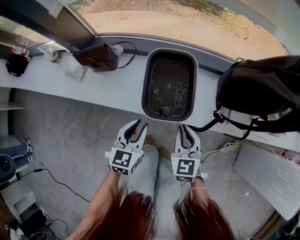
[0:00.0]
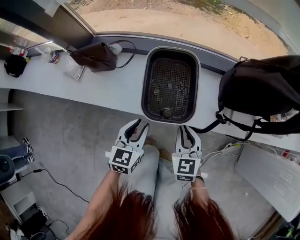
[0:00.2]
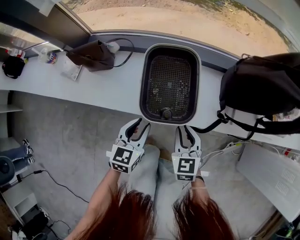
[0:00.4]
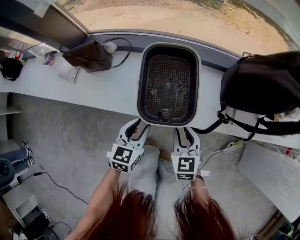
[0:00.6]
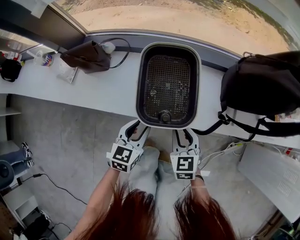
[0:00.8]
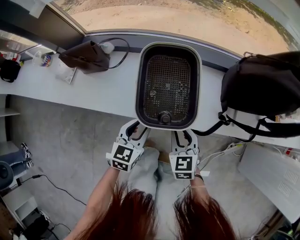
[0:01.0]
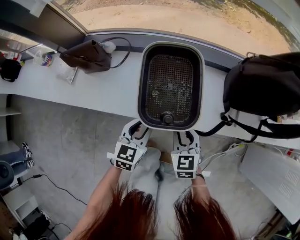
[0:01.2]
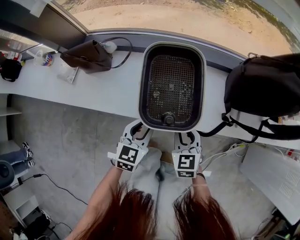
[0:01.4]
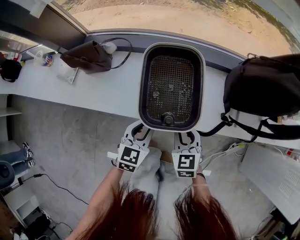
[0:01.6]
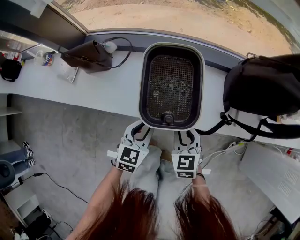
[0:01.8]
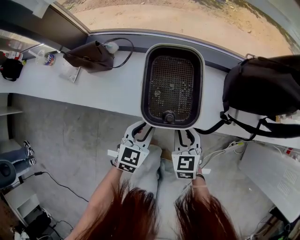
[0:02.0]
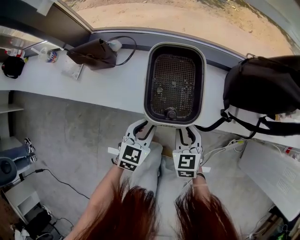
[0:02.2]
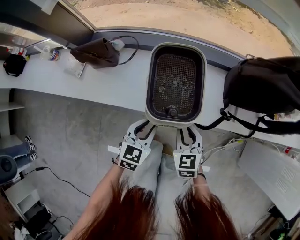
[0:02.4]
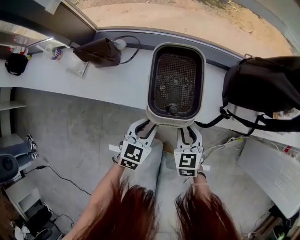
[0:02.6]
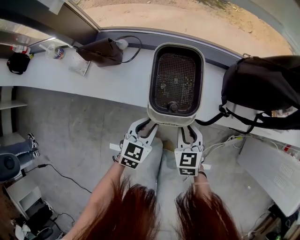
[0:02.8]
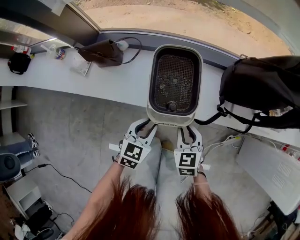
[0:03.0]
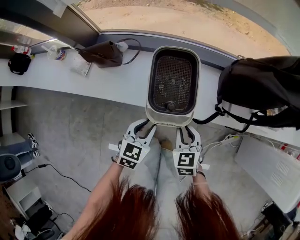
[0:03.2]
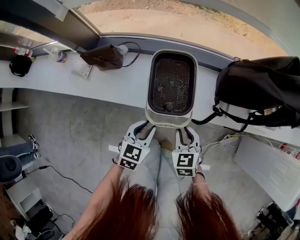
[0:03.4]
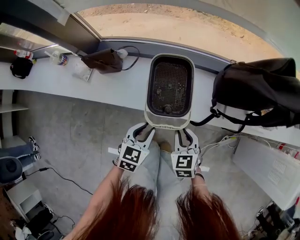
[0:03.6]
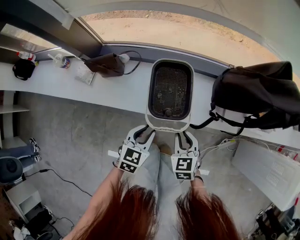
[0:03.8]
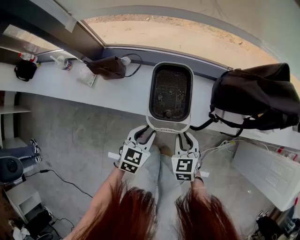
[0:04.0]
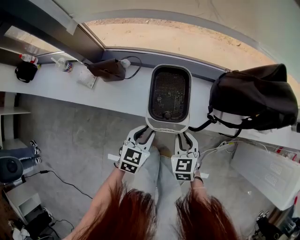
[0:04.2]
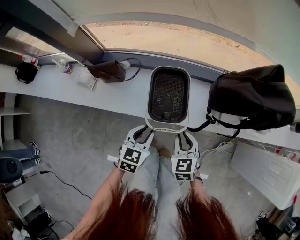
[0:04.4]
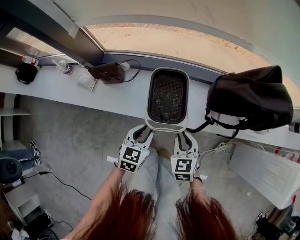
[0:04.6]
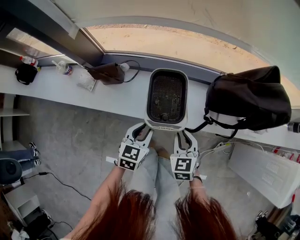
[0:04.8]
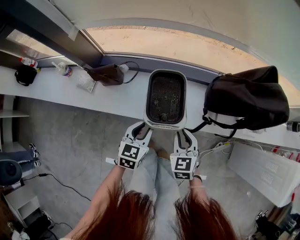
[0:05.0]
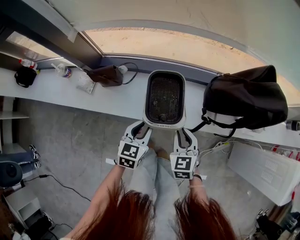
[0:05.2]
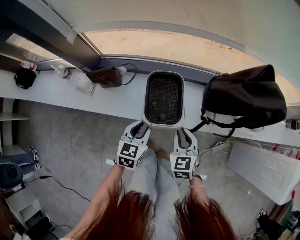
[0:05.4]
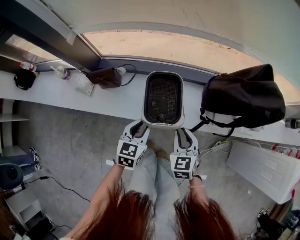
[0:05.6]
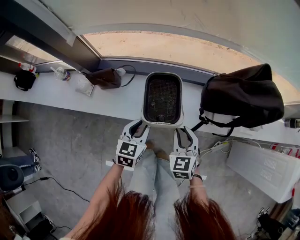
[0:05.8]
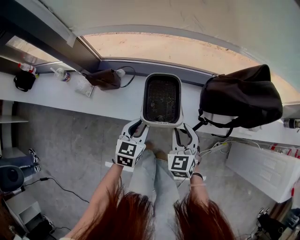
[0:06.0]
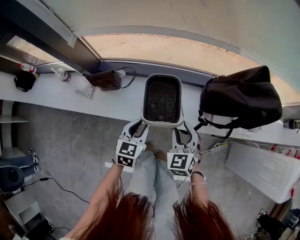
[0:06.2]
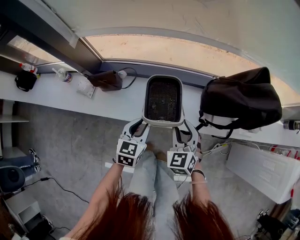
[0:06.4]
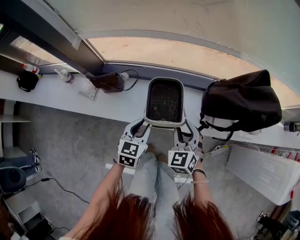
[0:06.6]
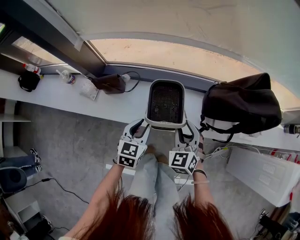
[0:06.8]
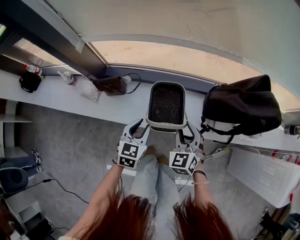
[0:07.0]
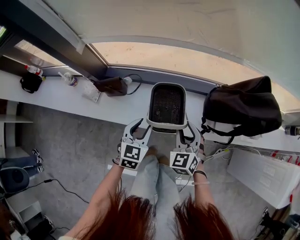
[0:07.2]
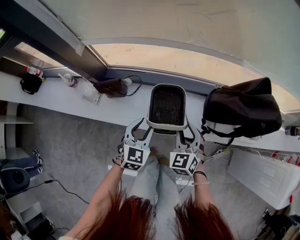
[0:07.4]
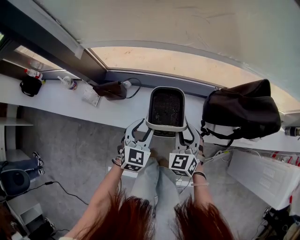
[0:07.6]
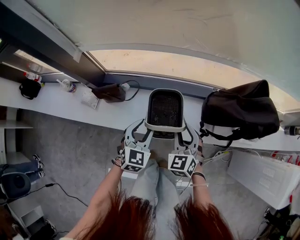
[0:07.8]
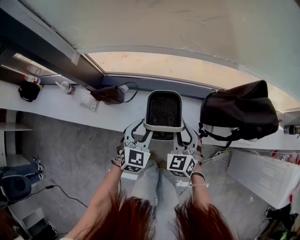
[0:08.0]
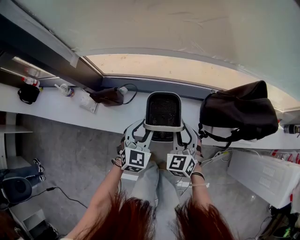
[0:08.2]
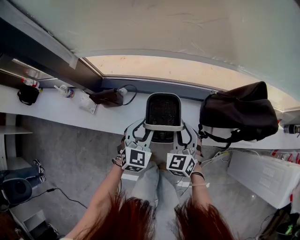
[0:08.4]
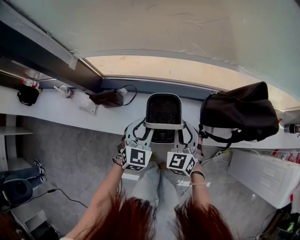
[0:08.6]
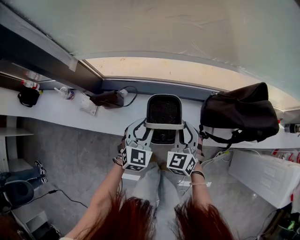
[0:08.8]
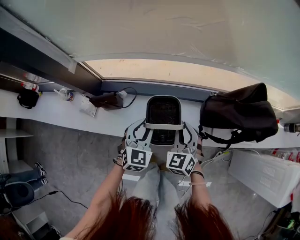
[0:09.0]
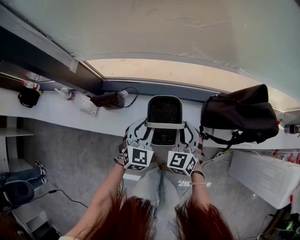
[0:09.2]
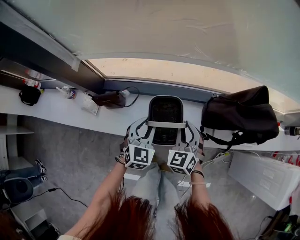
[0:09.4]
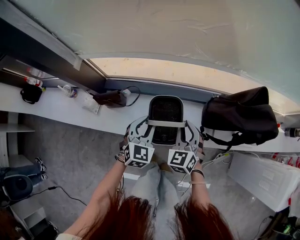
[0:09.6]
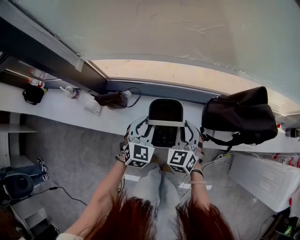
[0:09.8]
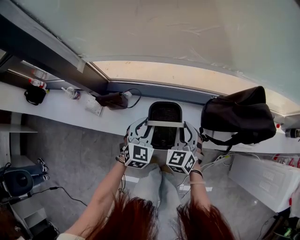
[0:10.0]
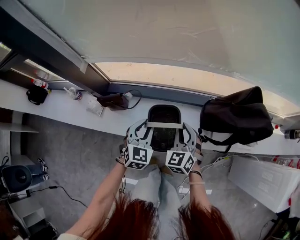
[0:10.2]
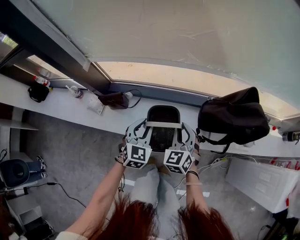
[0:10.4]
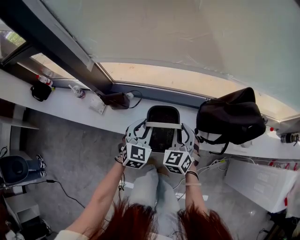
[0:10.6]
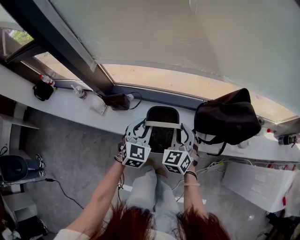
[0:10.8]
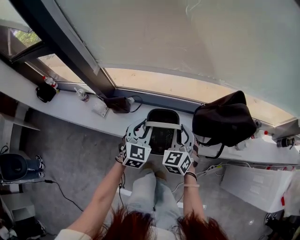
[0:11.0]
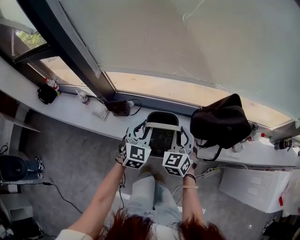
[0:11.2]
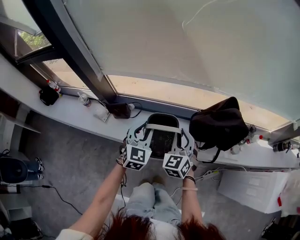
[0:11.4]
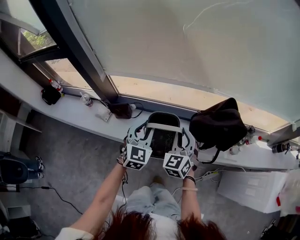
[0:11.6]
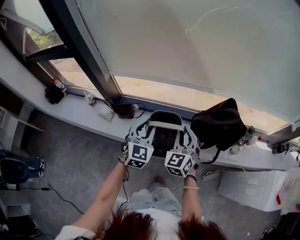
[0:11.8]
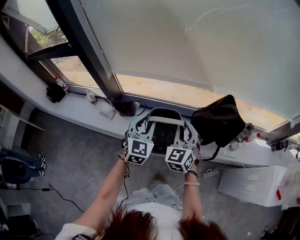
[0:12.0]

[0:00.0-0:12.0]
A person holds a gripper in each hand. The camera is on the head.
0:00.0 to 0:01.6: Both grippers move downward, roughly 10 cm.
0:01.6 to 0:03.0: The two grippers go some 10 cm upward.
0:03.0 to 0:04.4: Both grippers move upward, some 10 cm.
0:04.4 to 0:06.0: The right gripper is displaced upward by about 5 cm. Meanwhile the left gripper shifts by some 5 cm.
0:06.0 to 0:07.6: The right gripper moves forward, about 5 cm, while the left gripper shifts by roughly 5 cm, and changes its angle by some 20 degrees.
0:07.6 to 0:09.0: The left gripper travels forward by approximately 5 cm.
0:09.0 to 0:10.4: The grippers move only a little.
0:10.4 to 0:12.0: The grippers both shift upward by approximately 20 cm.

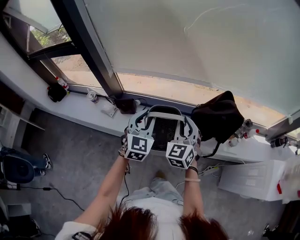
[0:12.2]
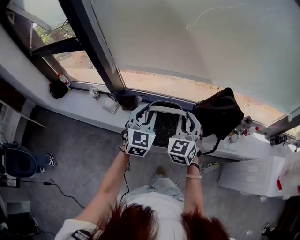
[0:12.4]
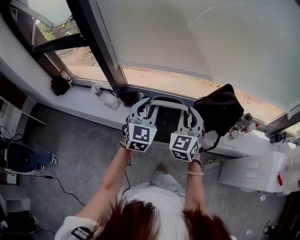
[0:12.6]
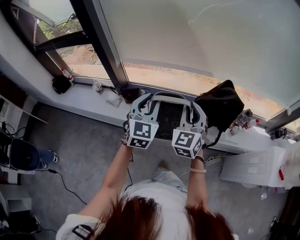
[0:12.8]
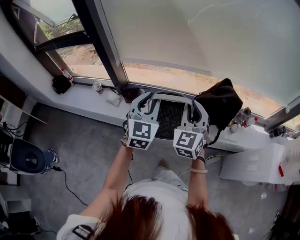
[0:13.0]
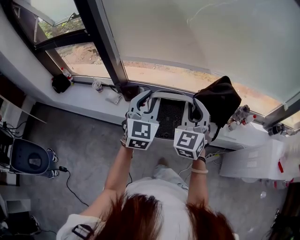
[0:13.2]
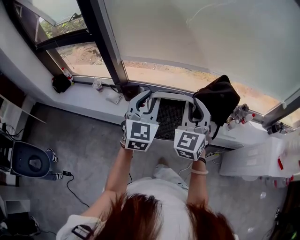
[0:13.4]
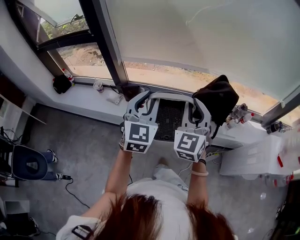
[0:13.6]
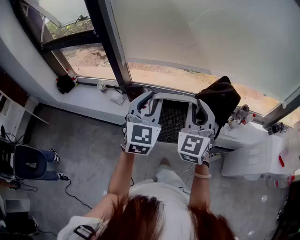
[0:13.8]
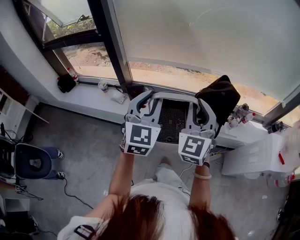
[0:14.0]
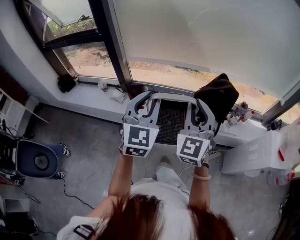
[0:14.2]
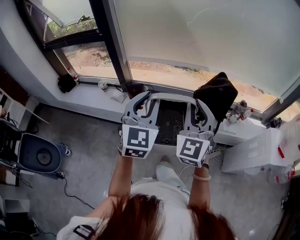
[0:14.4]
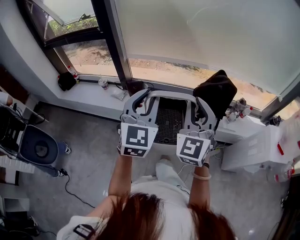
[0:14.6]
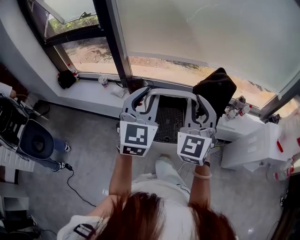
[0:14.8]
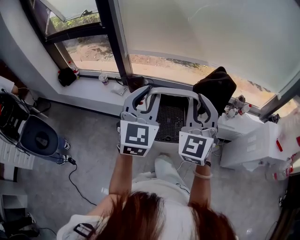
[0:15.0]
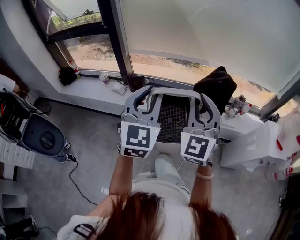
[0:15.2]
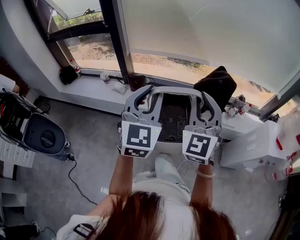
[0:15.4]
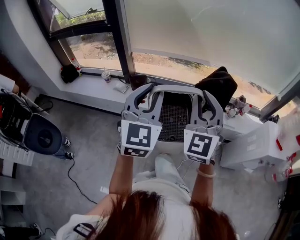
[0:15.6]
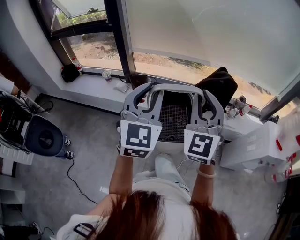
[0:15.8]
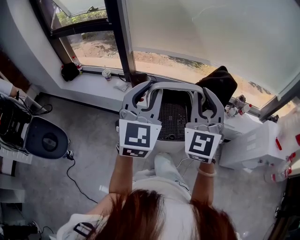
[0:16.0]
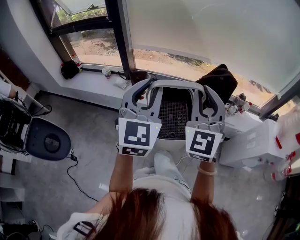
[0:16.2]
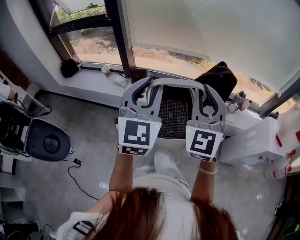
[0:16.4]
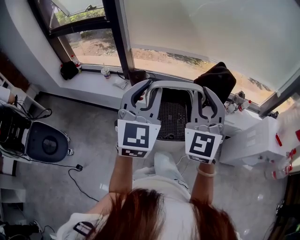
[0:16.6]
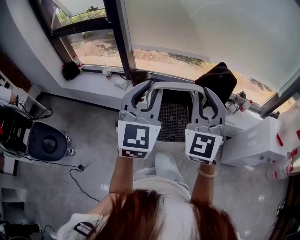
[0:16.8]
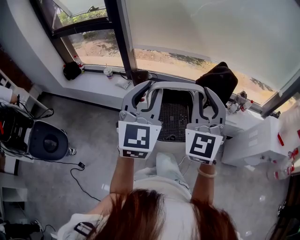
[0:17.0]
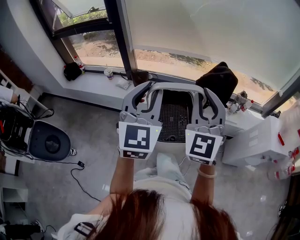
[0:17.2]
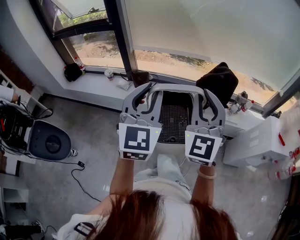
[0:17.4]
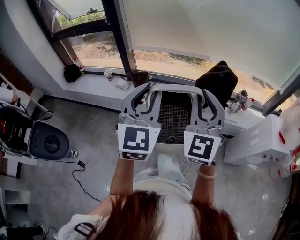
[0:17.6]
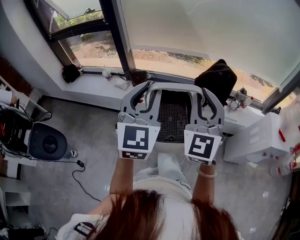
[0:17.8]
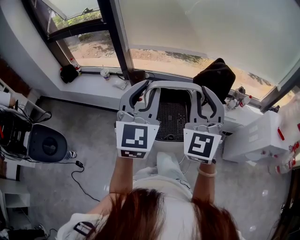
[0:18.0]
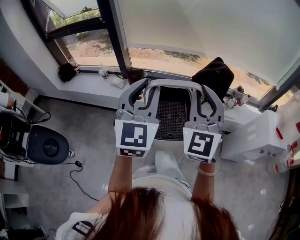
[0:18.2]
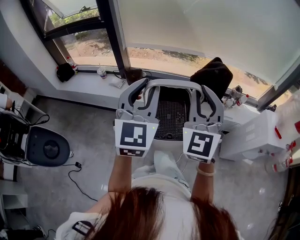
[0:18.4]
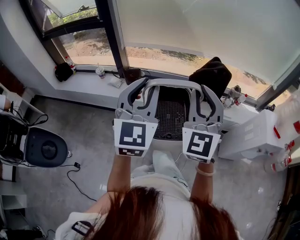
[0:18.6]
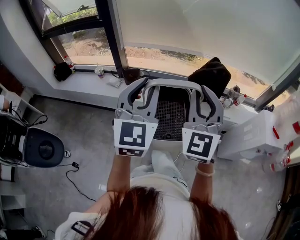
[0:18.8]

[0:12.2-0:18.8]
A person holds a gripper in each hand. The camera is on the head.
0:12.2 to 0:13.8: The grippers both shift backward and upward by roughly 25 cm.
0:13.8 to 0:15.4: Both grippers move backward, approximately 15 cm.
0:15.4 to 0:17.2: The right gripper moves roughly 5 cm; the left gripper is displaced backward by approximately 5 cm.
0:17.2 to 0:18.8: Both grippers stay put.

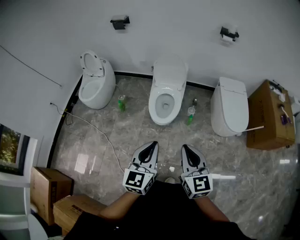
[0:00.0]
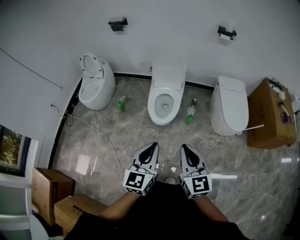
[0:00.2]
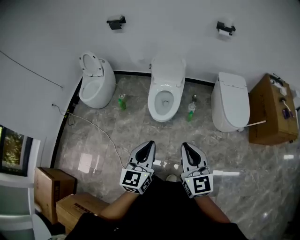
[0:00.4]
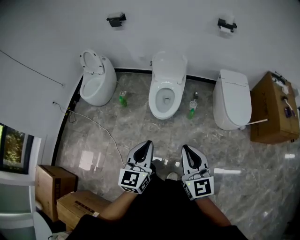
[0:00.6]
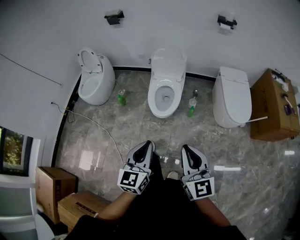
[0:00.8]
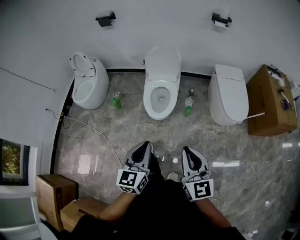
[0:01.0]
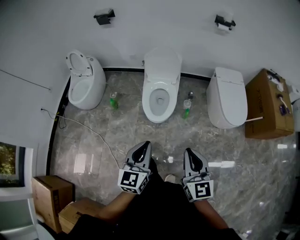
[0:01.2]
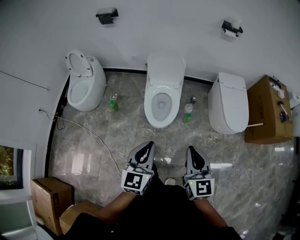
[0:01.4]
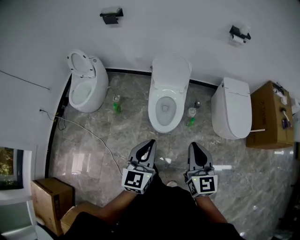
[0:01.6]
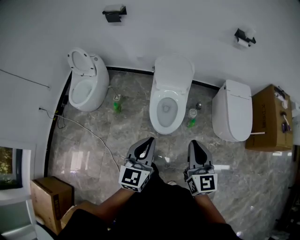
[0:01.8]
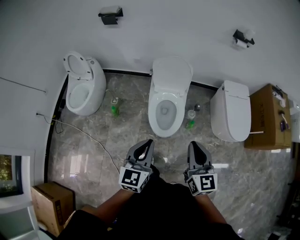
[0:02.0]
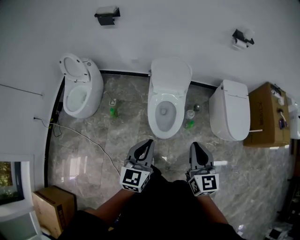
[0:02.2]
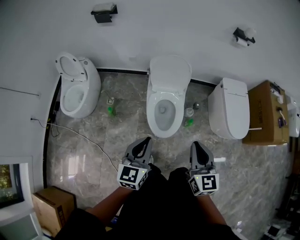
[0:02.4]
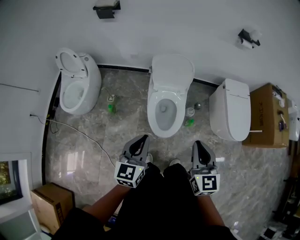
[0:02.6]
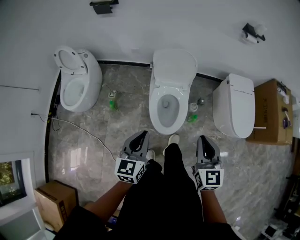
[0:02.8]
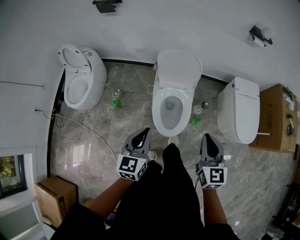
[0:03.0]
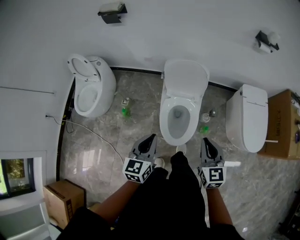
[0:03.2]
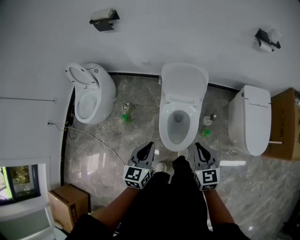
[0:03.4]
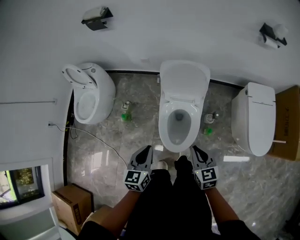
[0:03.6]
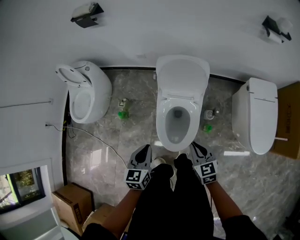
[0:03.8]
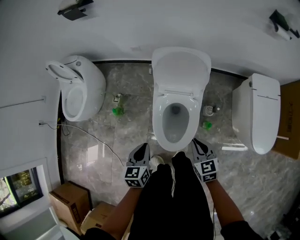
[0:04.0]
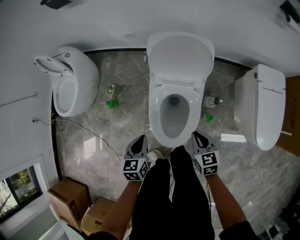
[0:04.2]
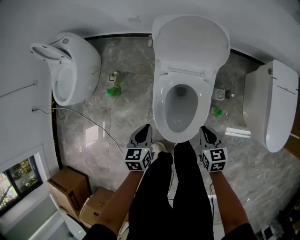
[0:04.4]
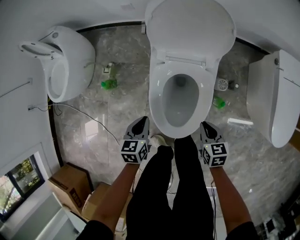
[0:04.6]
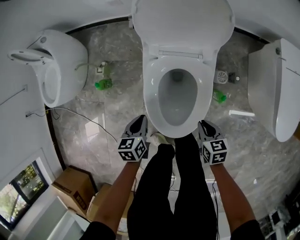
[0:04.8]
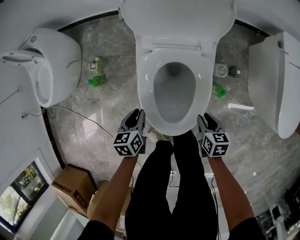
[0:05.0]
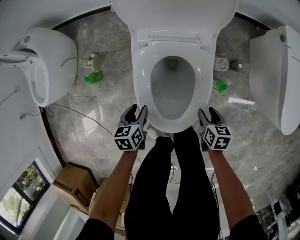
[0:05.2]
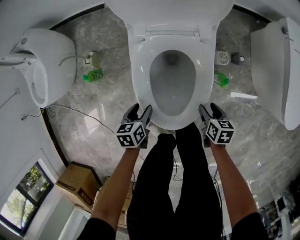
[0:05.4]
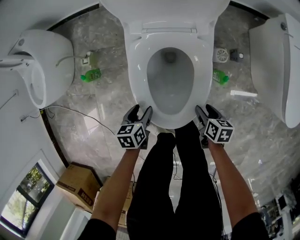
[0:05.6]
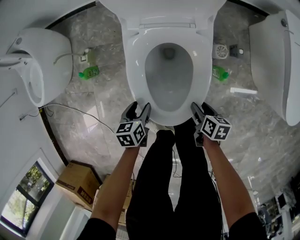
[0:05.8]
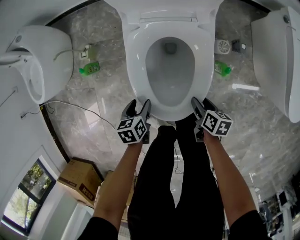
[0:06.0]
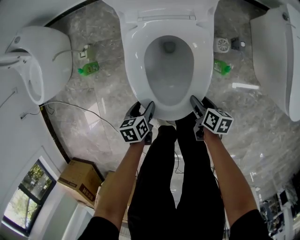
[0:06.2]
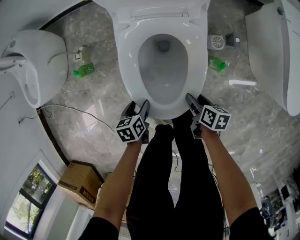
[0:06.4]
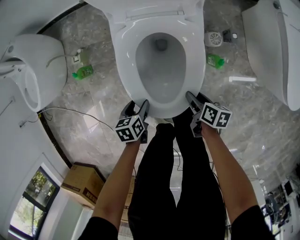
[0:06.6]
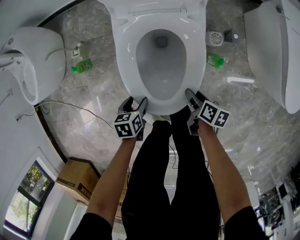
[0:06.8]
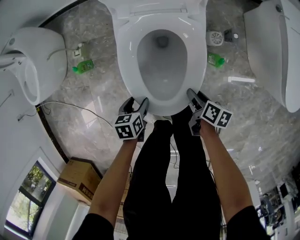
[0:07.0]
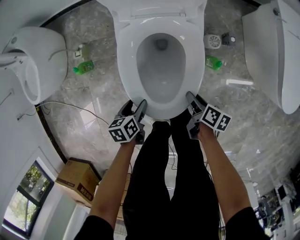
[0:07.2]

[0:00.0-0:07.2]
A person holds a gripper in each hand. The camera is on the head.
0:00.0 to 0:01.4: Both grippers travel together forward, approximately 15 cm.
0:01.4 to 0:02.8: The right gripper moves forward, roughly 20 cm, while the left gripper travels forward and to the left by some 25 cm.
0:02.8 to 0:04.4: The two grippers go roughly 40 cm downward and forward. The left gripper rotates roughly 30 degrees. Meanwhile the right gripper rotates about 30 degrees.
0:04.4 to 0:05.8: The grippers both shift downward by some 25 cm. The left gripper opens its fingers; the right gripper rotates some 40 degrees, and opens its fingers.
0:05.8 to 0:07.2: The grippers move only a little.
